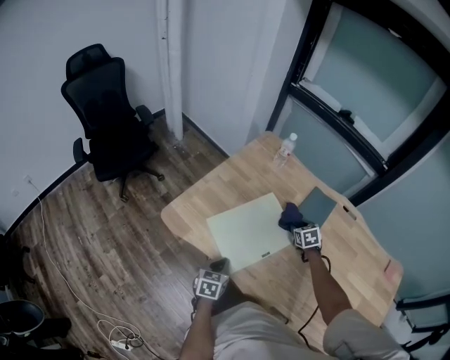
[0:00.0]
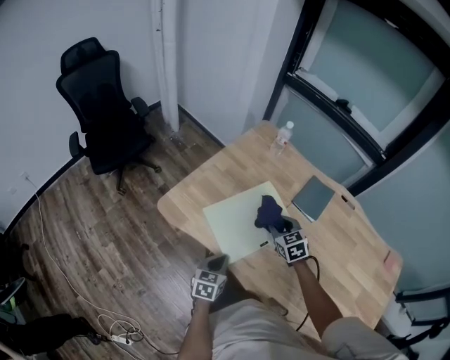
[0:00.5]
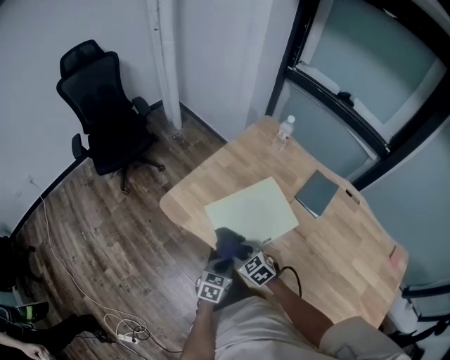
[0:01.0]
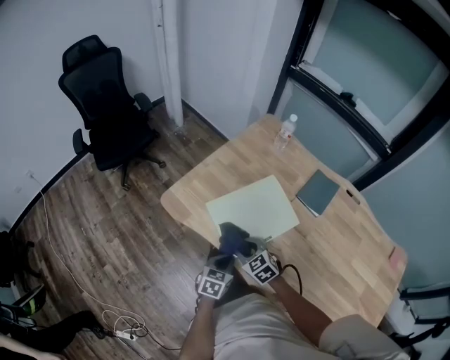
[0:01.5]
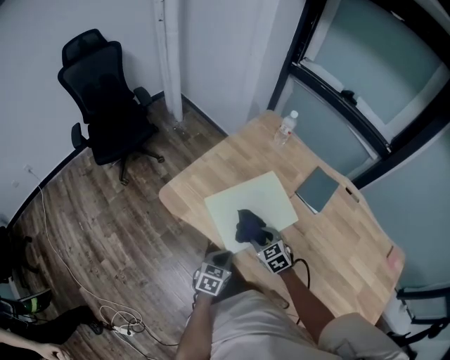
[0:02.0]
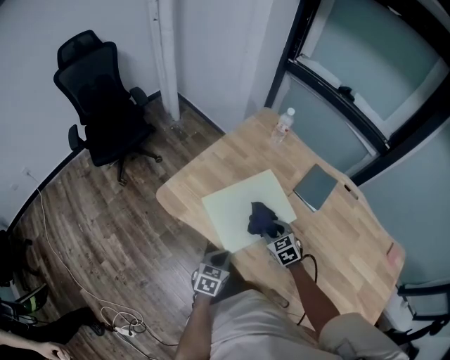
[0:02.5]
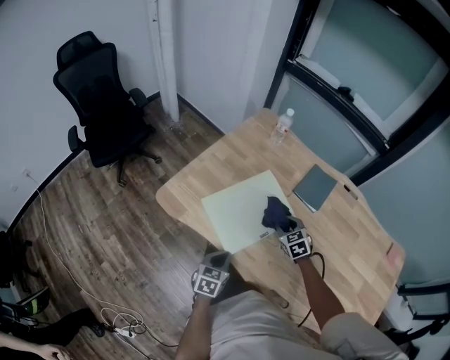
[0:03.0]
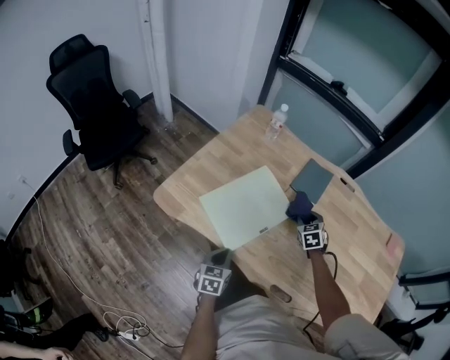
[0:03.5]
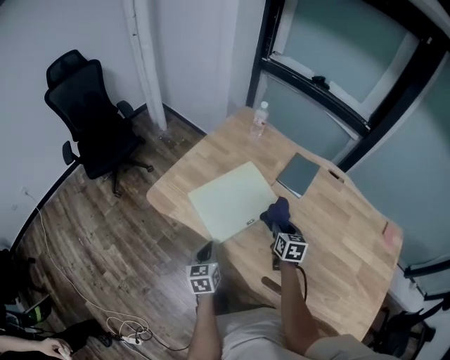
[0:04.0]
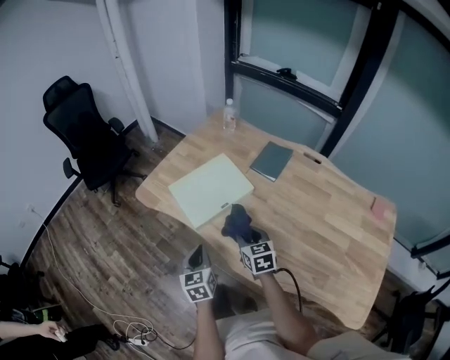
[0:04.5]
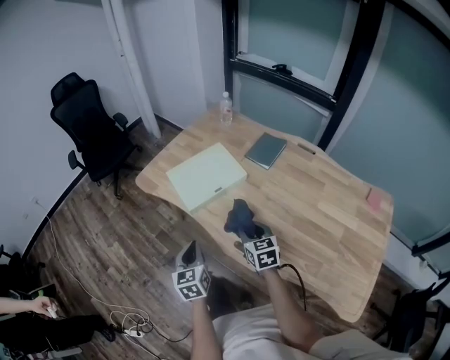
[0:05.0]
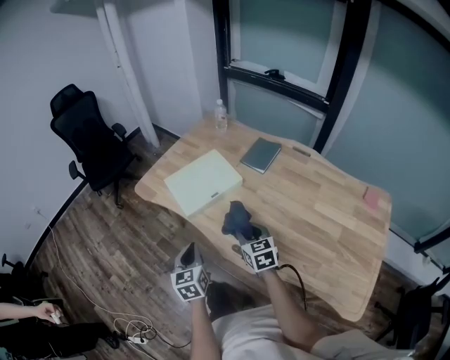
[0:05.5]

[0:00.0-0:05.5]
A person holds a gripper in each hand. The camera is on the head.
0:00.0 to 0:02.0: The right gripper travels to the left and backward by about 25 cm, and changes its angle by roughly 30 degrees. Meanwhile the left gripper shifts by about 5 cm.
0:02.0 to 0:03.5: The right gripper is displaced to the right and forward by about 20 cm, and turns by about 30 degrees.
0:03.5 to 0:05.5: The left gripper shifts by about 25 cm, and turns by some 30 degrees. The right gripper shifts by approximately 30 cm, and swivels about 30 degrees.

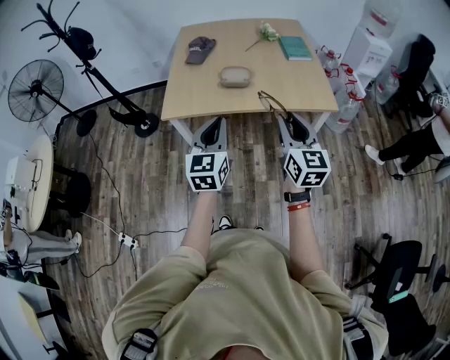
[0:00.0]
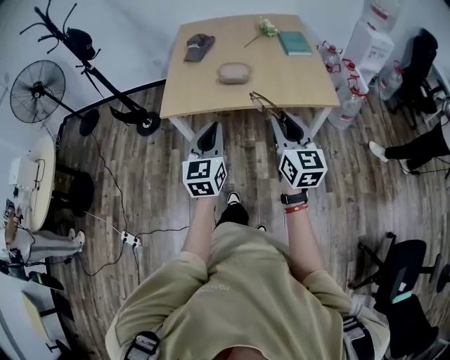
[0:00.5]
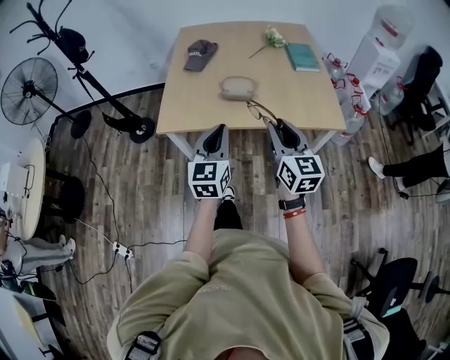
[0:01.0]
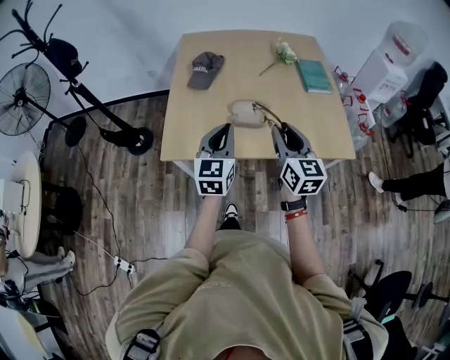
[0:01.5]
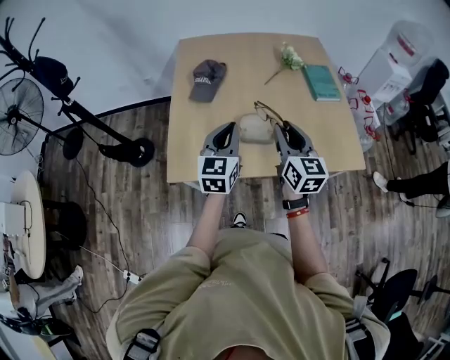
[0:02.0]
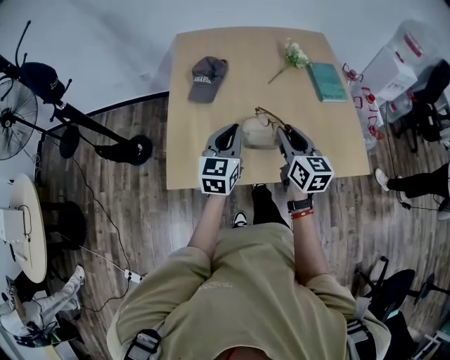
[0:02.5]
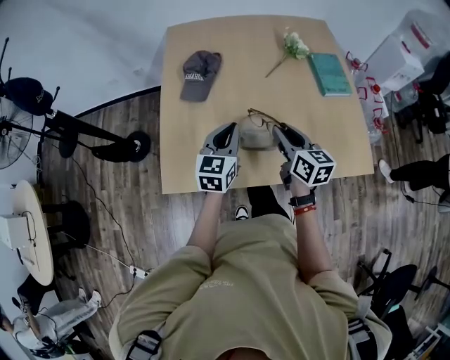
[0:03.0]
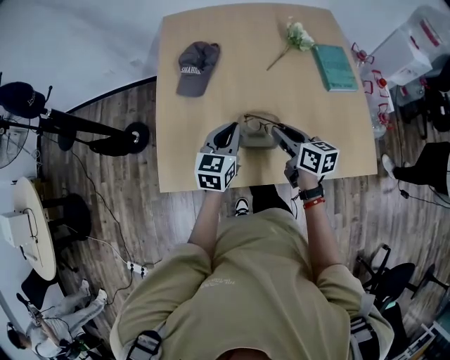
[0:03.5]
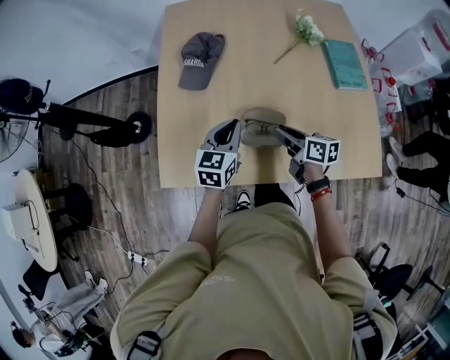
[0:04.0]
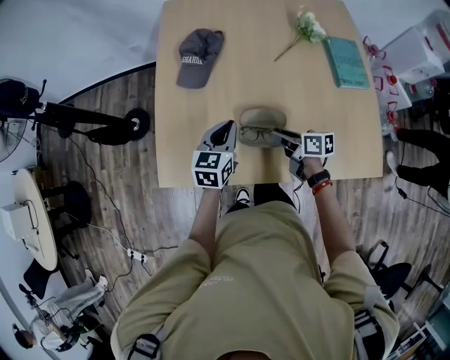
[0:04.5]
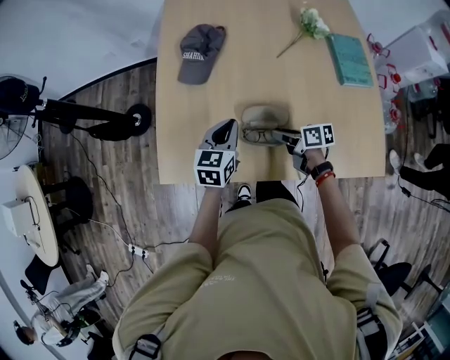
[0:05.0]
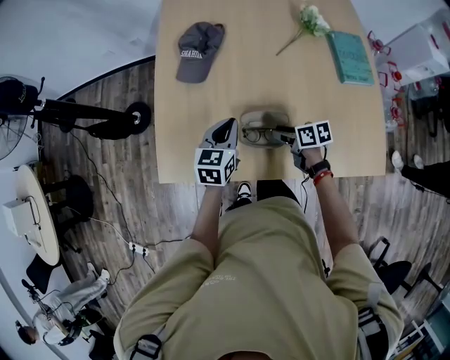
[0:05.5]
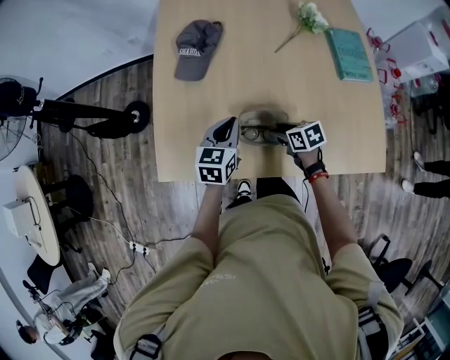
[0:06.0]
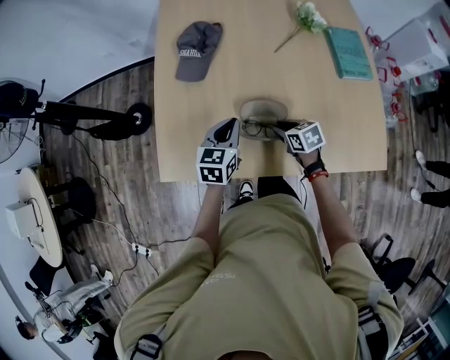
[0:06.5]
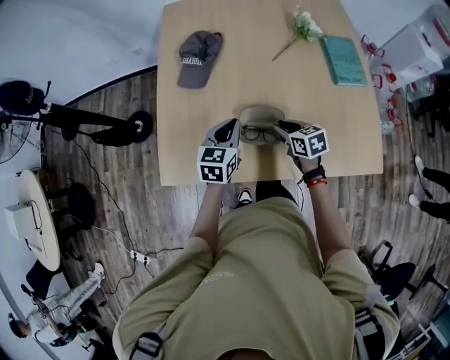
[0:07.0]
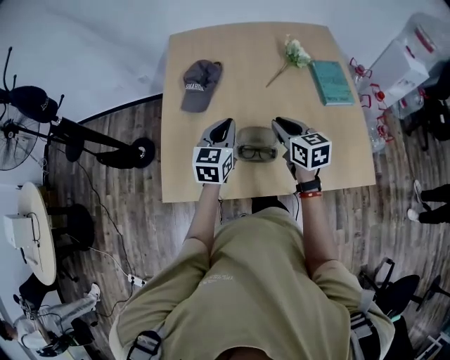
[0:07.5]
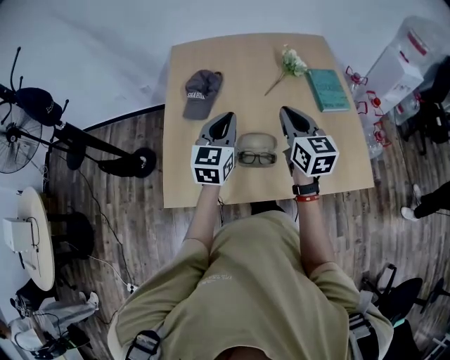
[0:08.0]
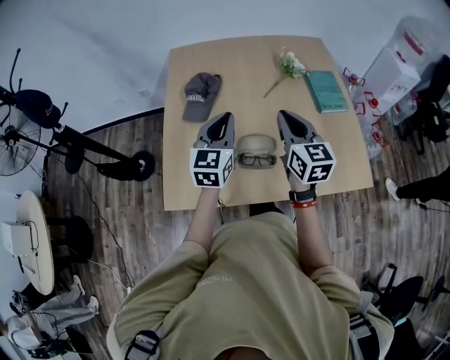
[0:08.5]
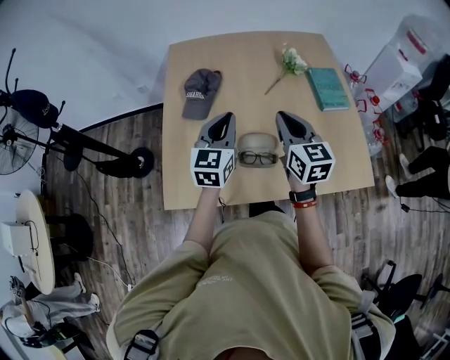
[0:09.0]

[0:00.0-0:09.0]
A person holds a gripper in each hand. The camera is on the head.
0:00.0 to 0:02.0: The pair of grippers is taken forward, some 50 cm.
0:02.0 to 0:04.5: The left gripper is displaced forward and downward by approximately 25 cm, and rotates about 20 degrees. The right gripper moves downward and forward, about 35 cm, and turns by approximately 60 degrees.
0:04.5 to 0:07.0: The right gripper rotates roughly 30 degrees.
0:07.0 to 0:09.0: The left gripper is displaced upward by some 15 cm, and turns by approximately 20 degrees; the right gripper shifts some 25 cm upward, tilts its fingers roughly 30 degrees upward, and closes its fingers.

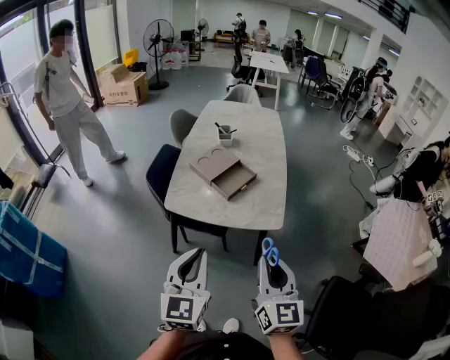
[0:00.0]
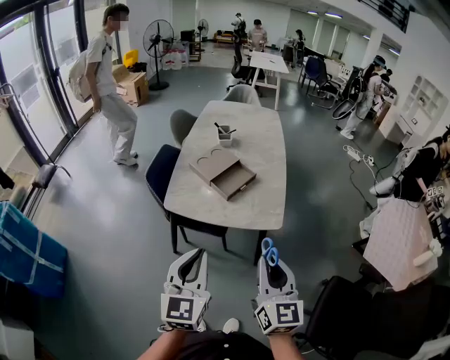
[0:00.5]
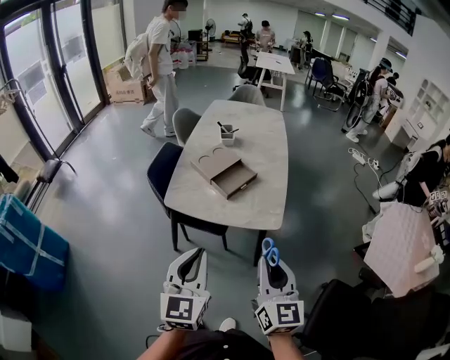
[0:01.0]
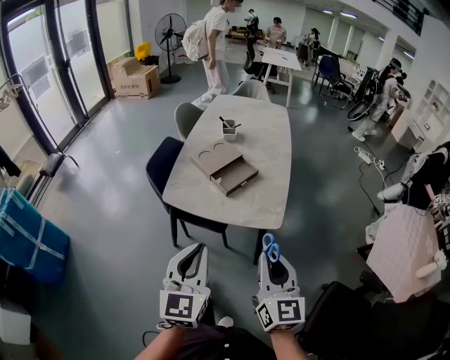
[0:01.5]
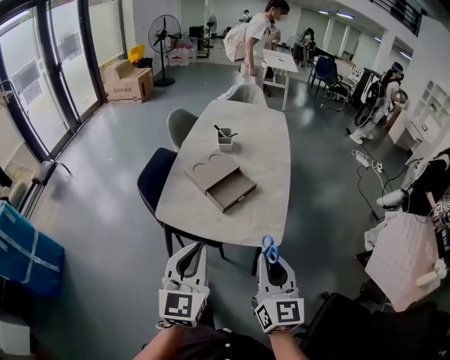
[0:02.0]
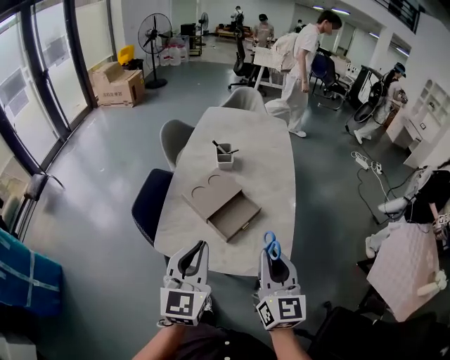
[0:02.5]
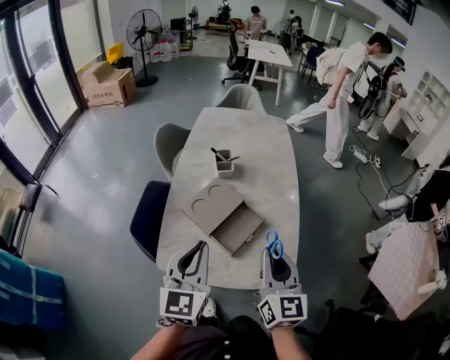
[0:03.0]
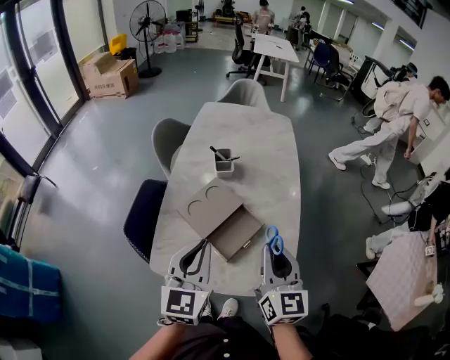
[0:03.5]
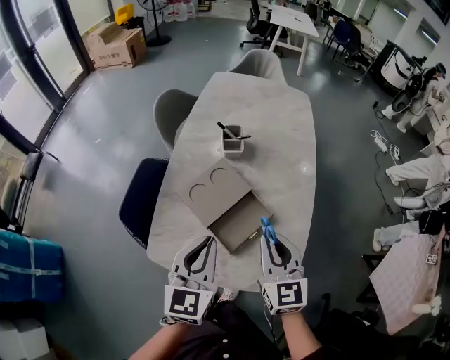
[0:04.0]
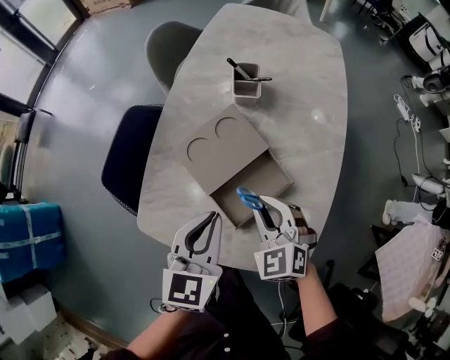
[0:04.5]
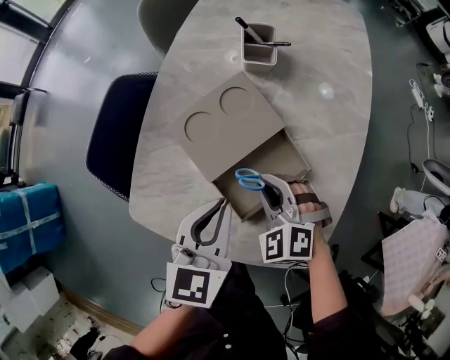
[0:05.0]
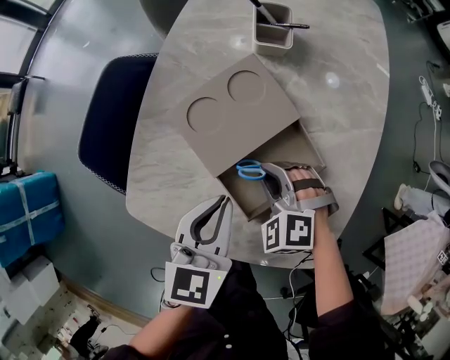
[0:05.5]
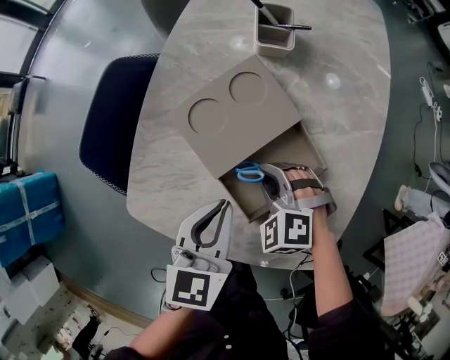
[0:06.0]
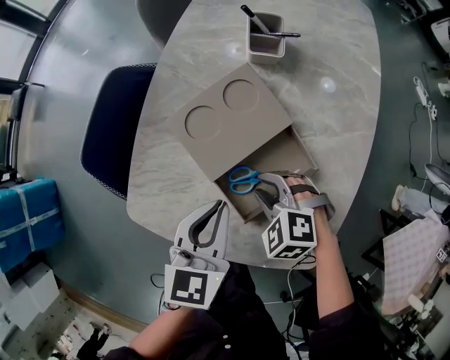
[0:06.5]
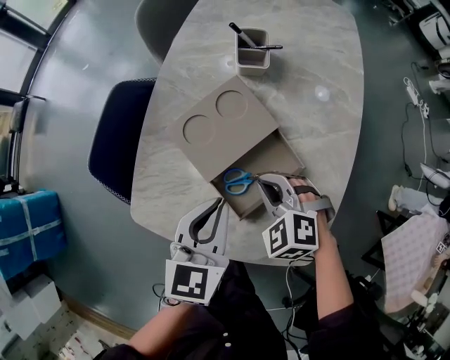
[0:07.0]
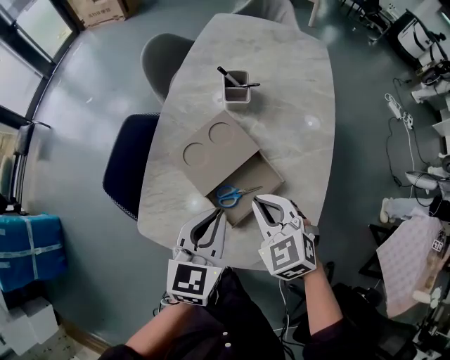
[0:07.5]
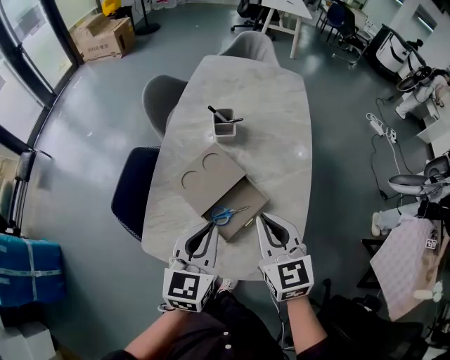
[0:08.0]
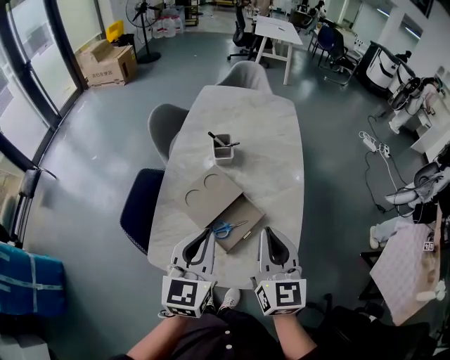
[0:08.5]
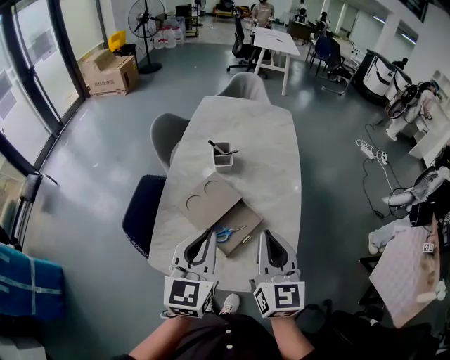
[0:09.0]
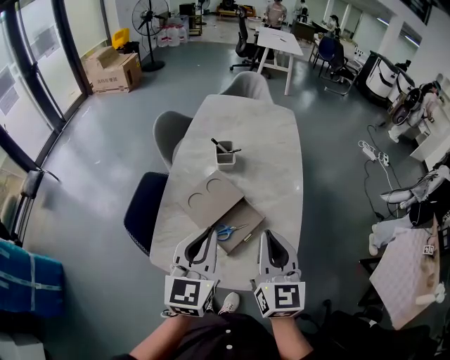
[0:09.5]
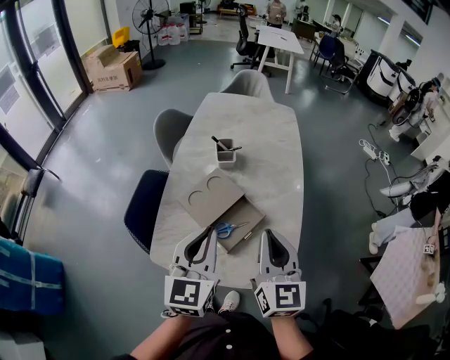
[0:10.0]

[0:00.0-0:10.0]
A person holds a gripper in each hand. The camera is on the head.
0:00.0 to 0:02.0: Both grippers move forward, approximately 10 cm.
0:02.0 to 0:04.0: Both grippers travel together forward, some 30 cm.
0:04.0 to 0:06.0: Both grippers travel together downward, roughly 25 cm. The right gripper tilts its fingers roughly 40 degrees downward.
0:06.0 to 0:08.0: The right gripper moves upward, about 30 cm, and rotates around the line of its fingers by roughly 50 degrees, clockwise from behind, while the left gripper is displaced upward by about 15 cm.
0:08.0 to 0:10.0: The right gripper is displaced upward and backward by some 10 cm, and rotates about 20 degrees, while the left gripper shifts roughly 10 cm upward.

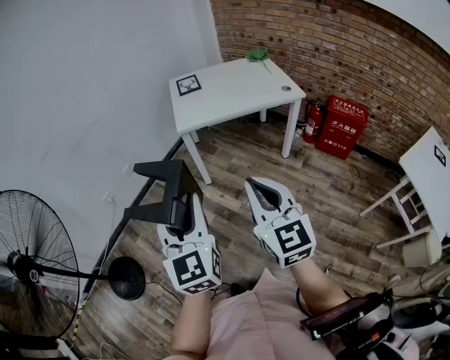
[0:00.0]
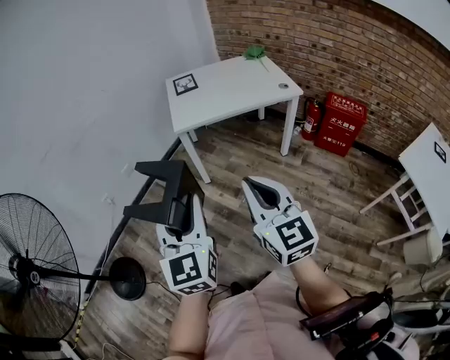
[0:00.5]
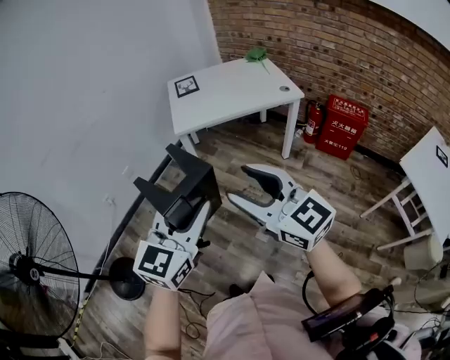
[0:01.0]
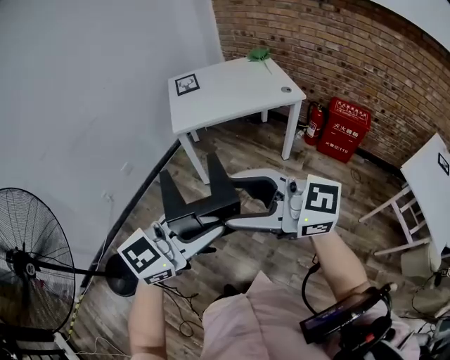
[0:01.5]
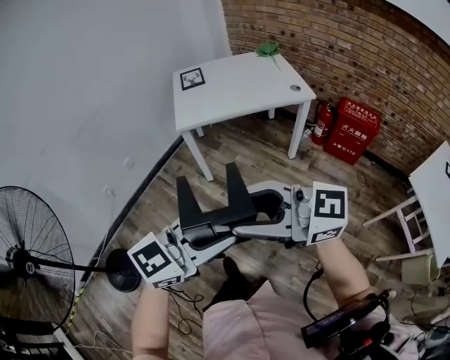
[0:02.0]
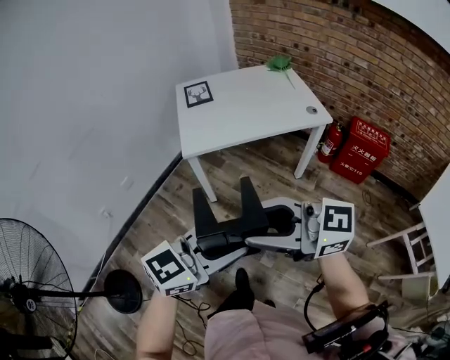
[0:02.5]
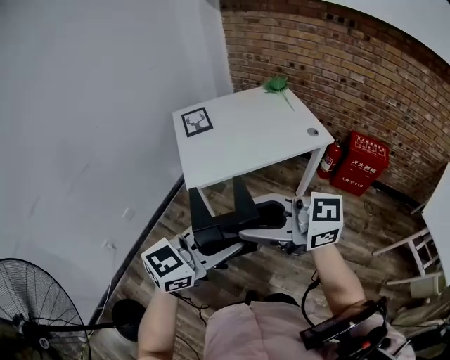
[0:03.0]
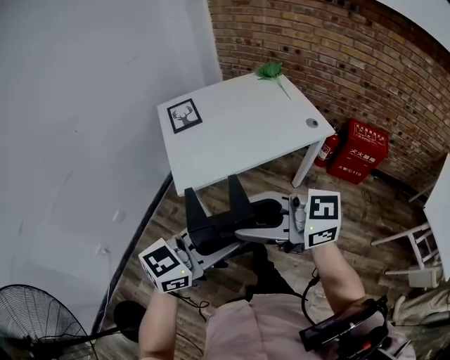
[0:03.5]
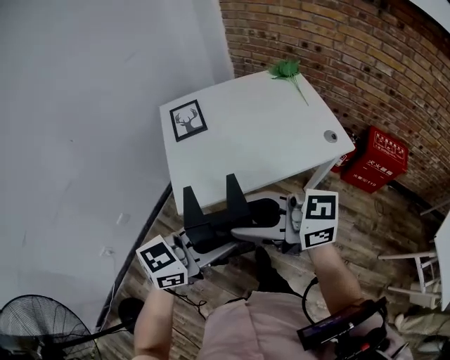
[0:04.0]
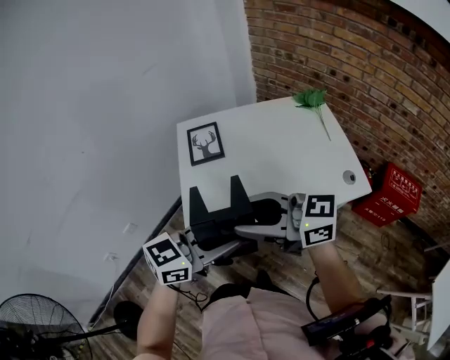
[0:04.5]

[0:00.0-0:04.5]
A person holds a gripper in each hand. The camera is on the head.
0:00.0 to 0:02.0: The right gripper changes its angle by roughly 60 degrees, and opens; the left gripper moves approximately 15 cm, and rotates approximately 70 degrees.
0:02.0 to 0:04.5: The two grippers travel together, roughly 60 cm.
